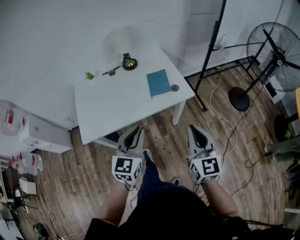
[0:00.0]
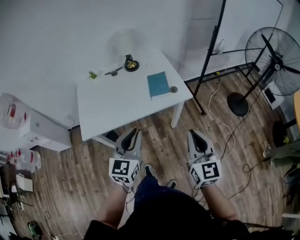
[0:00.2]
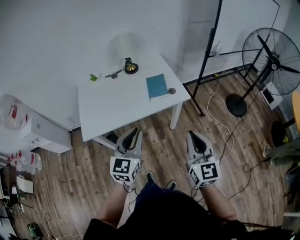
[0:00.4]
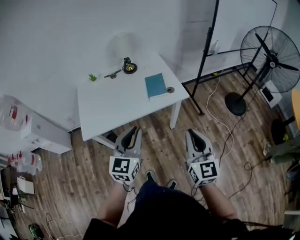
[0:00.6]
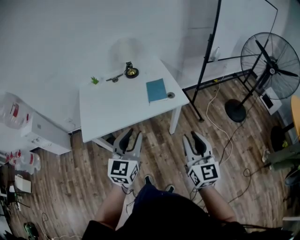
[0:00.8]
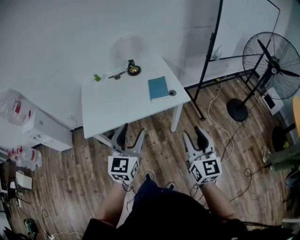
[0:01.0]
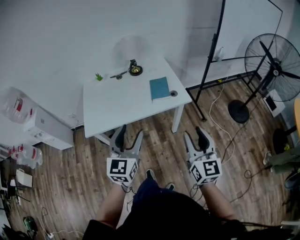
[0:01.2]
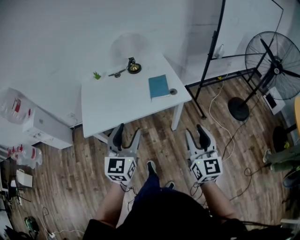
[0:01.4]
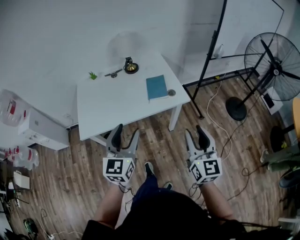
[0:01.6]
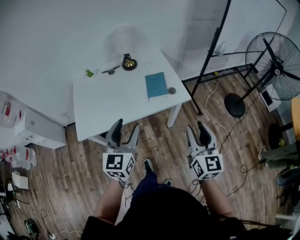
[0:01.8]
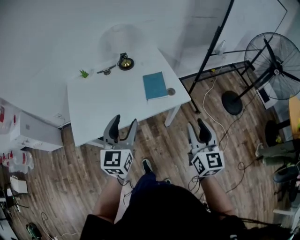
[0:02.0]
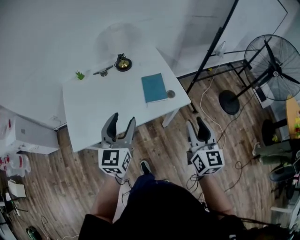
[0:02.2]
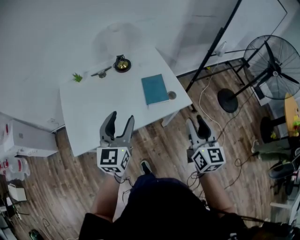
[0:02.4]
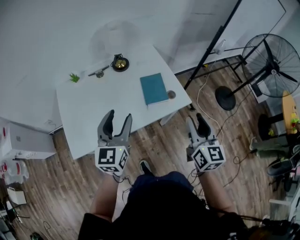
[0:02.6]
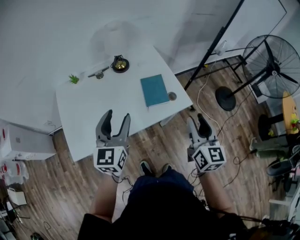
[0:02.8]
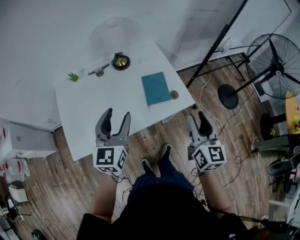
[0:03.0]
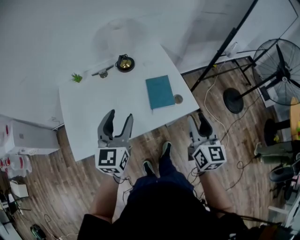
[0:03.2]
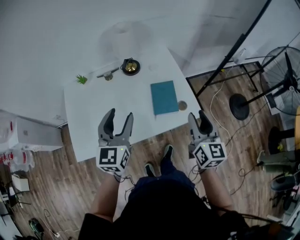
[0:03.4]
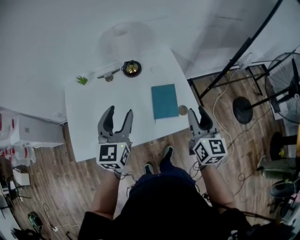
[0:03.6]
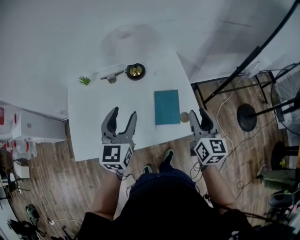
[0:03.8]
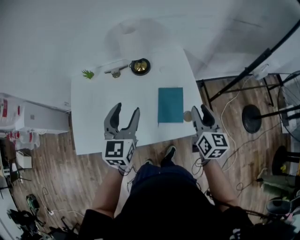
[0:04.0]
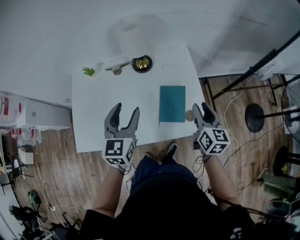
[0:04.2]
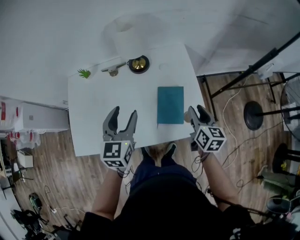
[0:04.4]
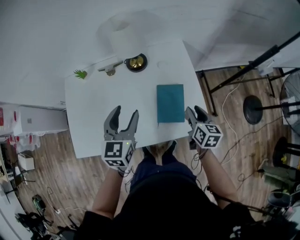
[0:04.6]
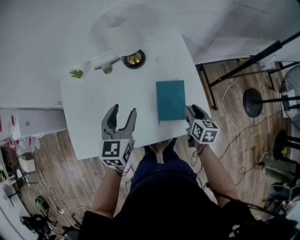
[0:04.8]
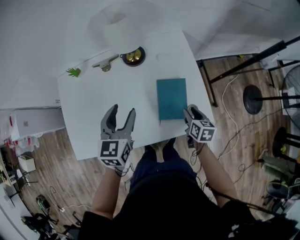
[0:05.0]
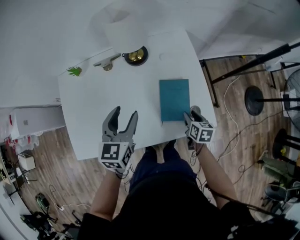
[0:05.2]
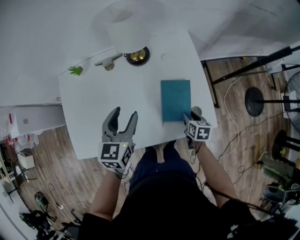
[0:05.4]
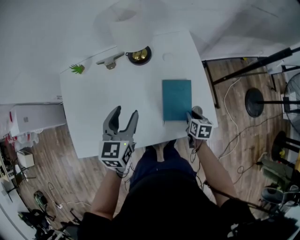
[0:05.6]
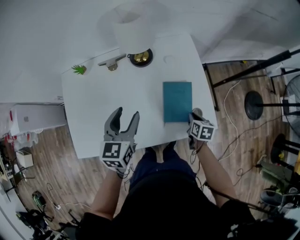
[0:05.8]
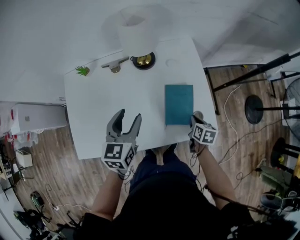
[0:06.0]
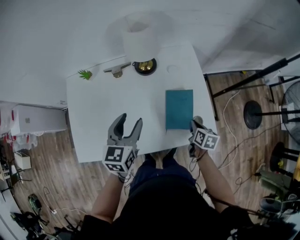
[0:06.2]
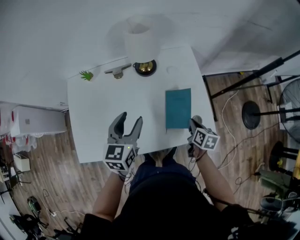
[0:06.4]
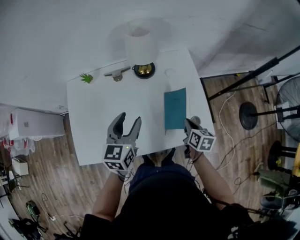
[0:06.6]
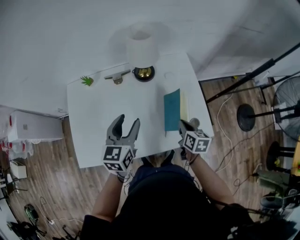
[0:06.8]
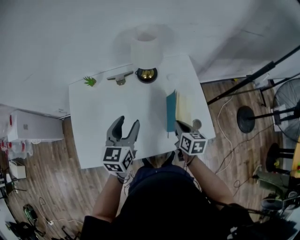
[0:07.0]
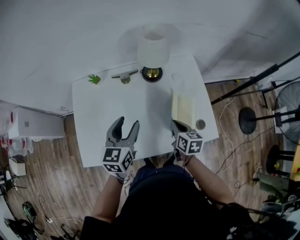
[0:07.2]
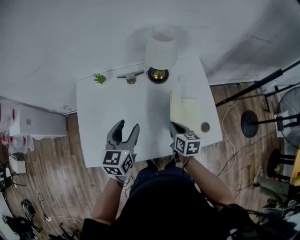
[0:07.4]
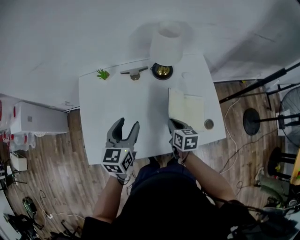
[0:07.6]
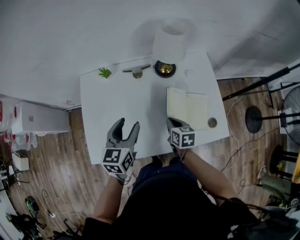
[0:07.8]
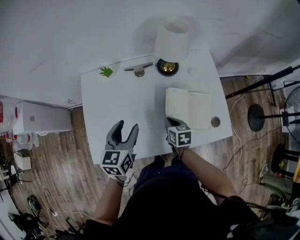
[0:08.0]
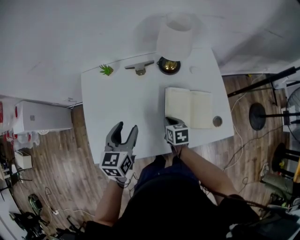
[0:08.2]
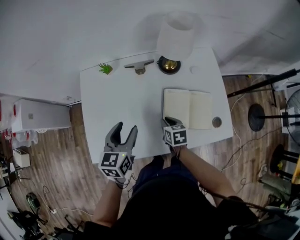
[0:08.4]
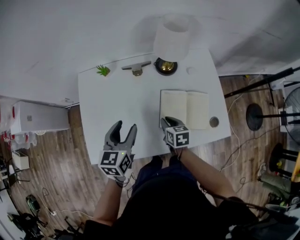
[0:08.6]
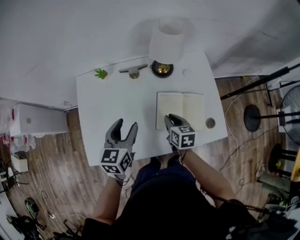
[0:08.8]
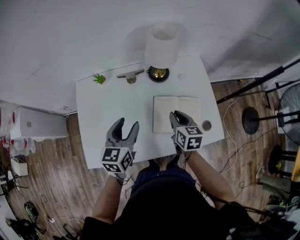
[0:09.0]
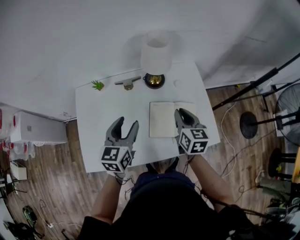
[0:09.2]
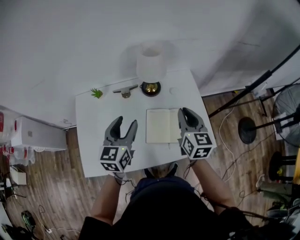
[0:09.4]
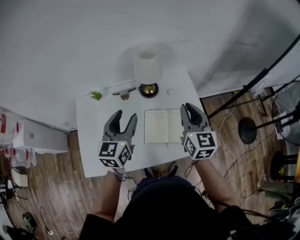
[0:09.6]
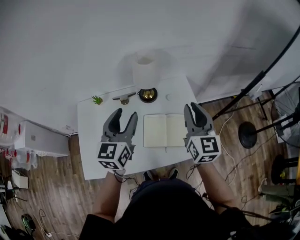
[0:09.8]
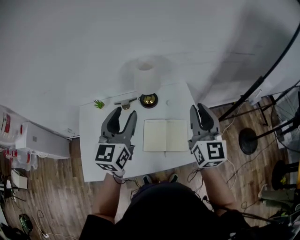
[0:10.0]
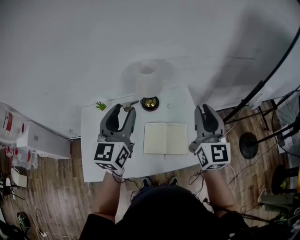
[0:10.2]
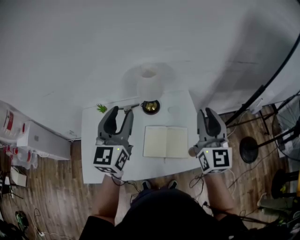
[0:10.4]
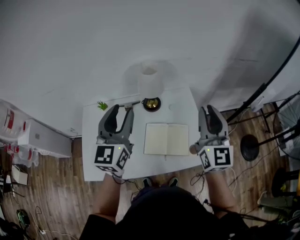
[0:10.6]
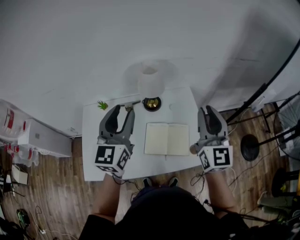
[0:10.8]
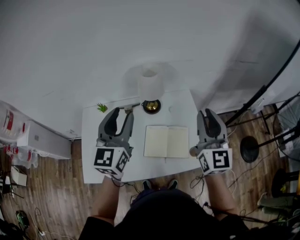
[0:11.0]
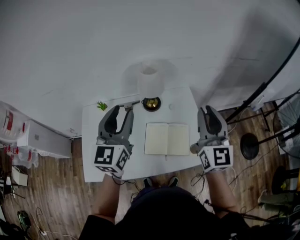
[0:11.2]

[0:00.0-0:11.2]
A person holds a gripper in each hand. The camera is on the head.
0:00.0 to 0:01.6: The left gripper shifts approximately 5 cm upward, and opens. Meanwhile the right gripper opens up.
0:01.6 to 0:03.2: The two grippers go about 25 cm forward.
0:03.2 to 0:04.8: The left gripper heads forward and downward, covering roughly 20 cm, while the right gripper shifts some 35 cm downward and forward, and turns by roughly 30 degrees.
0:04.8 to 0:06.4: The right gripper travels downward and back again, some 10 cm each way, and closes its fingers.
0:06.4 to 0:08.0: The right gripper moves to the left, some 25 cm, and turns by roughly 20 degrees; the left gripper shifts approximately 15 cm to the left.
0:08.0 to 0:09.6: The left gripper moves upward and to the right, approximately 15 cm. Meanwhile the right gripper travels upward and to the right by some 35 cm, and angles its fingers upward, by about 40 degrees.
0:09.6 to 0:11.2: The left gripper travels upward by some 15 cm, while the right gripper is displaced upward and to the right by some 15 cm.

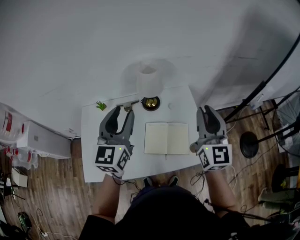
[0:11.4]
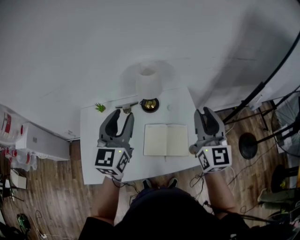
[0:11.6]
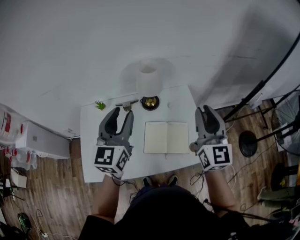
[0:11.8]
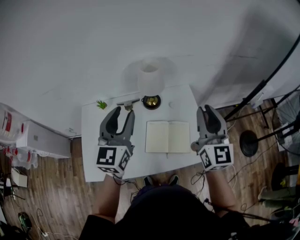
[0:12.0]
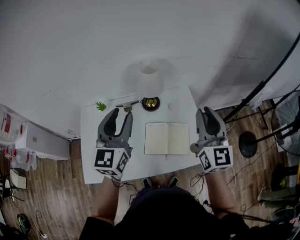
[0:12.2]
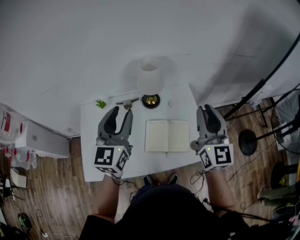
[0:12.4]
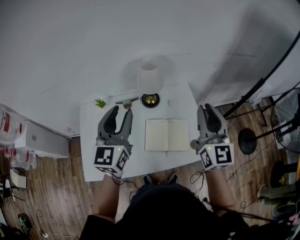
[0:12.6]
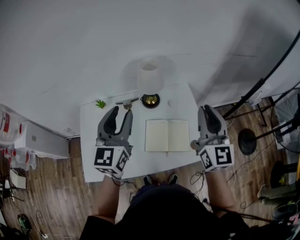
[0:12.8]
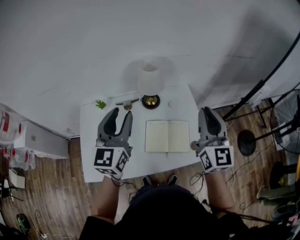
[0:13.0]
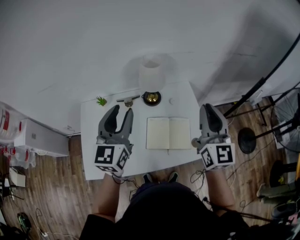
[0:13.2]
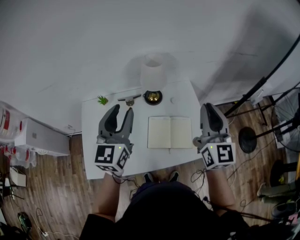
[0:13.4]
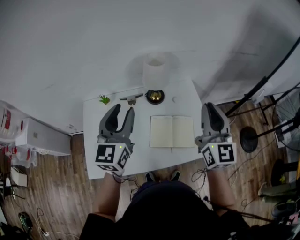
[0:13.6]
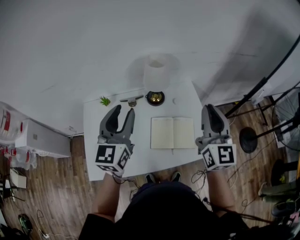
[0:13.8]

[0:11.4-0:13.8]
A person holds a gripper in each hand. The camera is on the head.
0:11.4 to 0:13.8: The grippers move only a little.

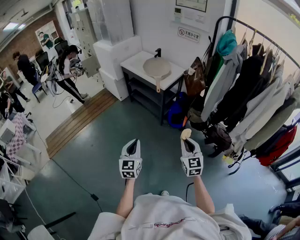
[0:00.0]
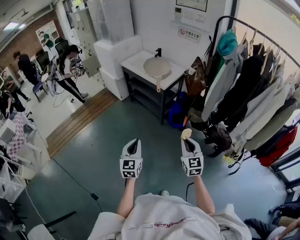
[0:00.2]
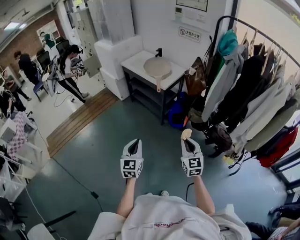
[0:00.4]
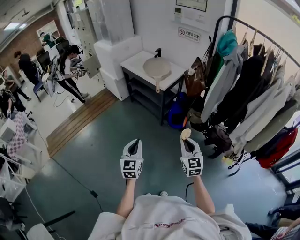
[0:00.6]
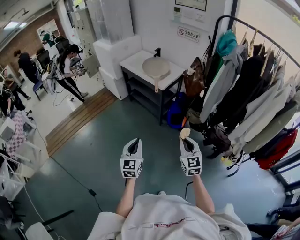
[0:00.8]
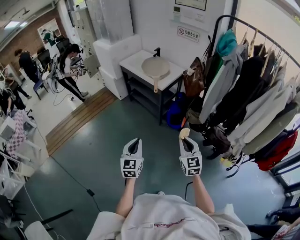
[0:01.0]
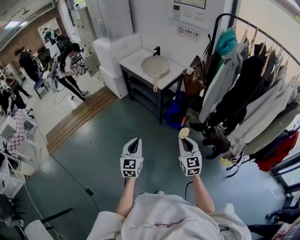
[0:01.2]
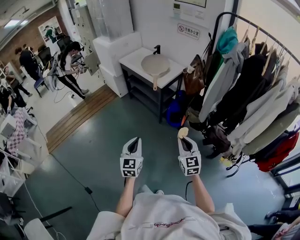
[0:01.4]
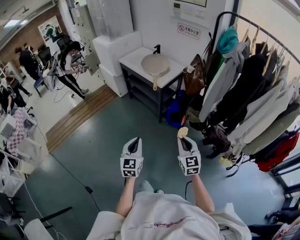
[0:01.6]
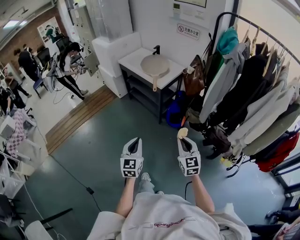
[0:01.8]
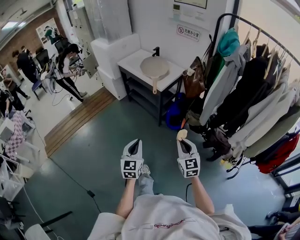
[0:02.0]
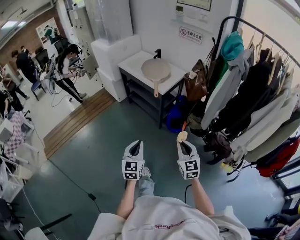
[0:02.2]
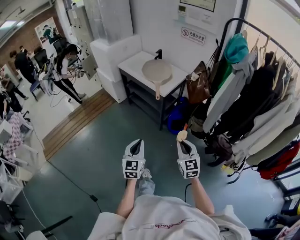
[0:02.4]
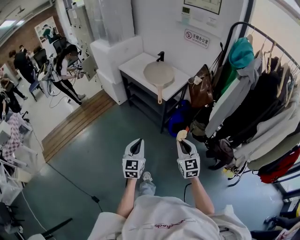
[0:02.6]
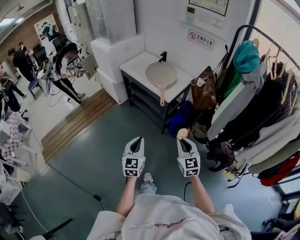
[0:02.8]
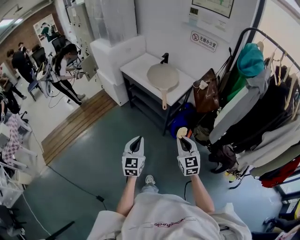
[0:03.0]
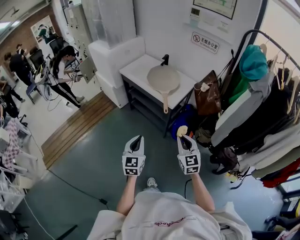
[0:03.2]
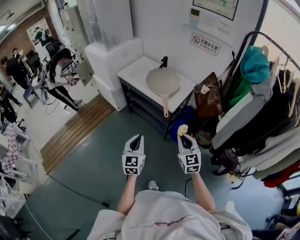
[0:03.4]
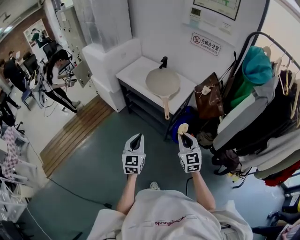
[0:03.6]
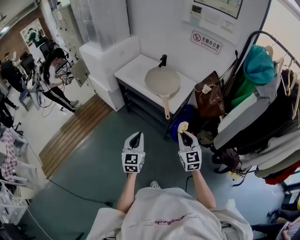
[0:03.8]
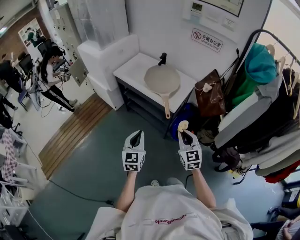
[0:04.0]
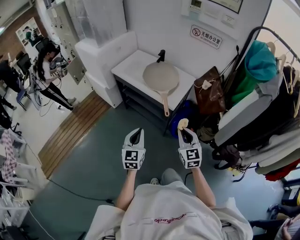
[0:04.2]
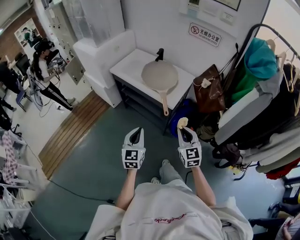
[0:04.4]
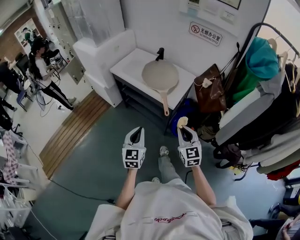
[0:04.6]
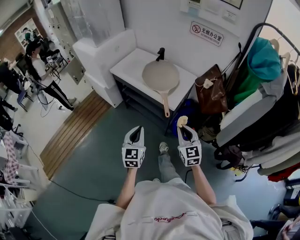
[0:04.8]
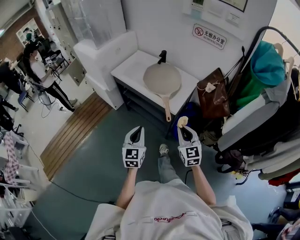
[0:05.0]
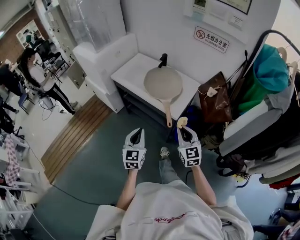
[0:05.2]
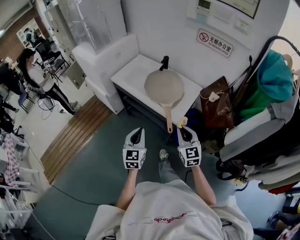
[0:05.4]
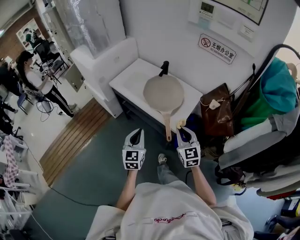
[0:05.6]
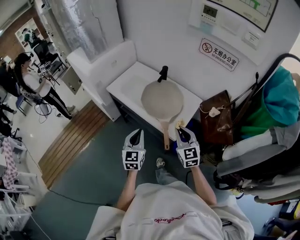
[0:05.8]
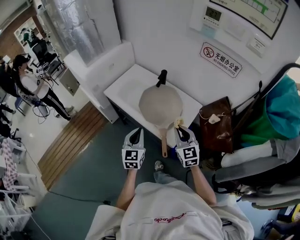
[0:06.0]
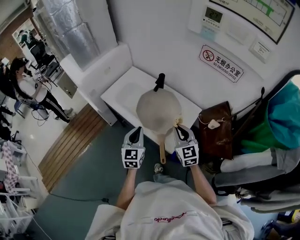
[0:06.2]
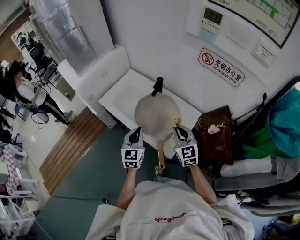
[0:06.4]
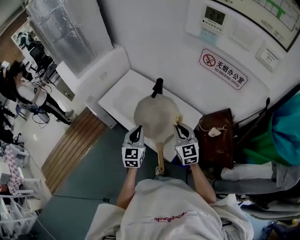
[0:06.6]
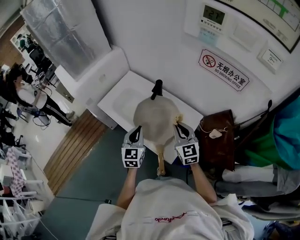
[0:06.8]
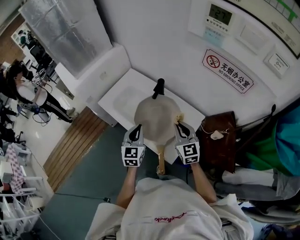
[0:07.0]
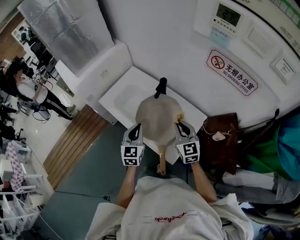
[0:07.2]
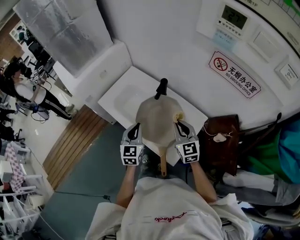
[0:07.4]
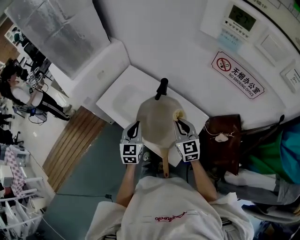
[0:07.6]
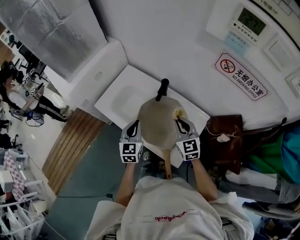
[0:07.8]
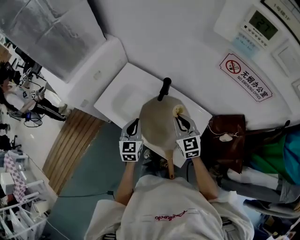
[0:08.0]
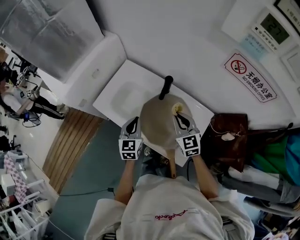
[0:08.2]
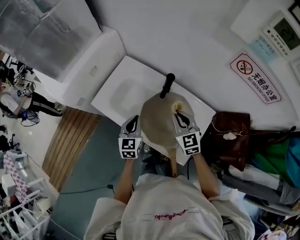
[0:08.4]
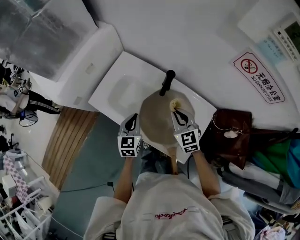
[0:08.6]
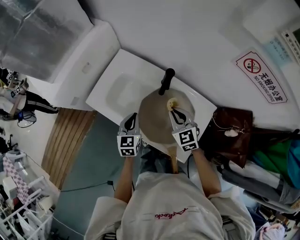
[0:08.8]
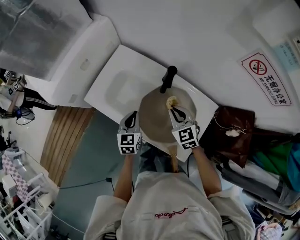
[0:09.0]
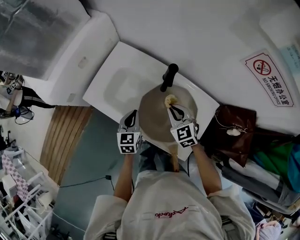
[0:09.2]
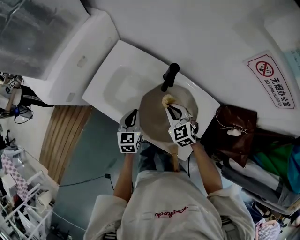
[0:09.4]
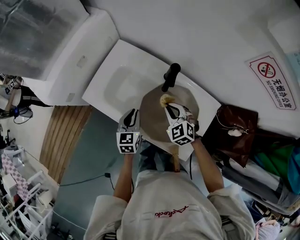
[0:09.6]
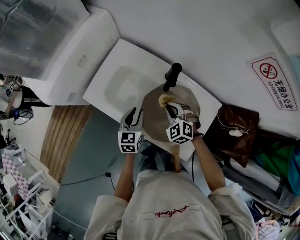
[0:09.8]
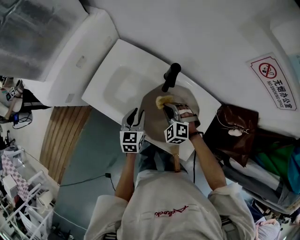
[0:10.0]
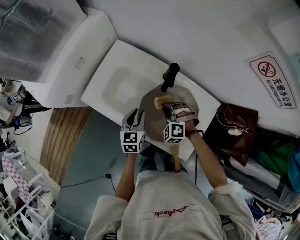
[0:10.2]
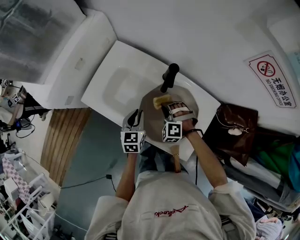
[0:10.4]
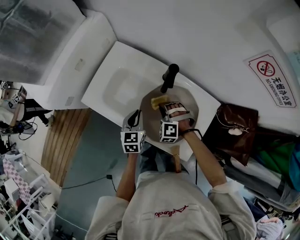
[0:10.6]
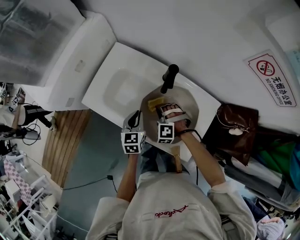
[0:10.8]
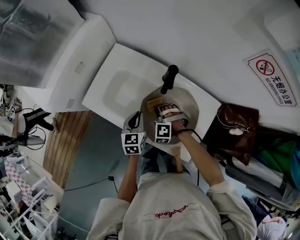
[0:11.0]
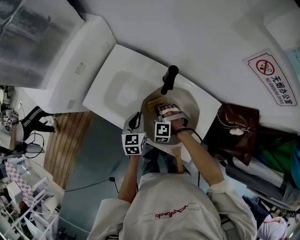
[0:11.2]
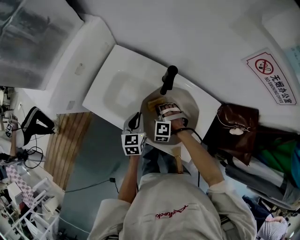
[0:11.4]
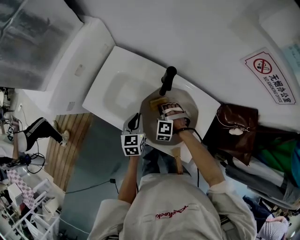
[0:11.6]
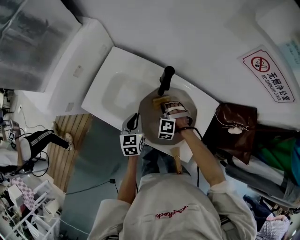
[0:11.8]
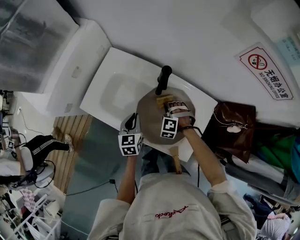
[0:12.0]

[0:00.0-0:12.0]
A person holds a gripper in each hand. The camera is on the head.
0:00.0 to 0:01.6: The left gripper moves to the right, approximately 5 cm. The right gripper shifts by about 5 cm.
0:01.6 to 0:03.0: The left gripper goes about 20 cm forward; the right gripper heads forward and to the left, covering approximately 25 cm.
0:03.0 to 0:04.4: The grippers both shift forward by approximately 15 cm.
0:04.4 to 0:06.0: The grippers both shift forward by approximately 30 cm.
0:06.0 to 0:07.6: The grippers both shift forward by about 20 cm.
0:07.6 to 0:09.0: The left gripper heads downward and forward, covering roughly 15 cm; the right gripper shifts about 15 cm downward, forward and to the left.
0:09.0 to 0:10.4: The right gripper goes some 10 cm downward, and rolls counterclockwise, seen from behind, by roughly 50 degrees.
0:10.4 to 0:12.0: The right gripper ends up roughly 5 cm from where it was.
